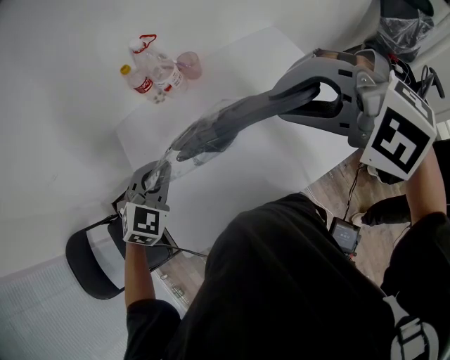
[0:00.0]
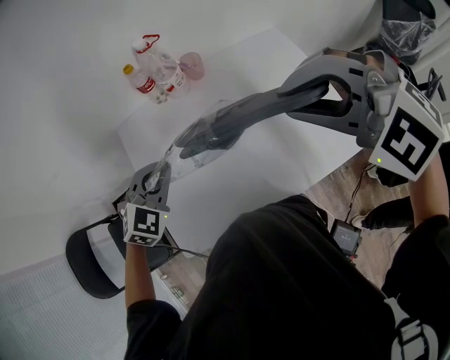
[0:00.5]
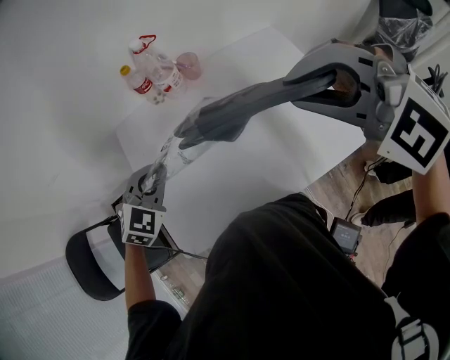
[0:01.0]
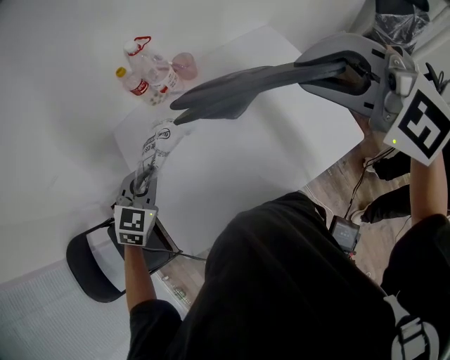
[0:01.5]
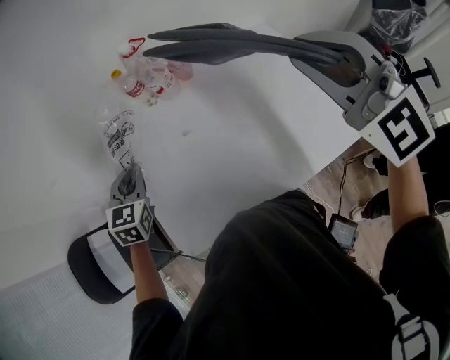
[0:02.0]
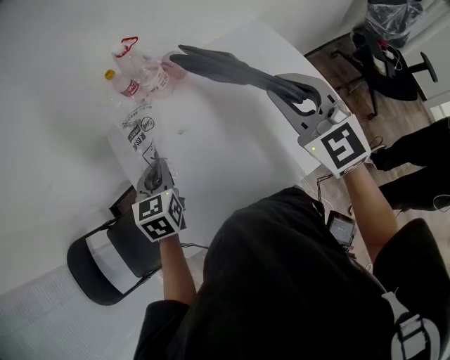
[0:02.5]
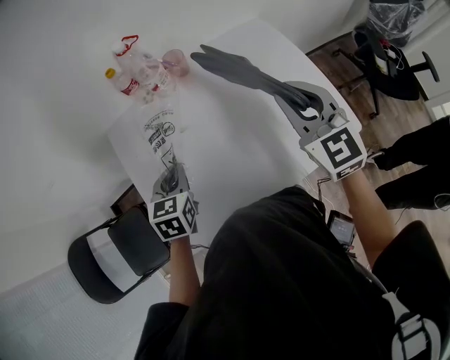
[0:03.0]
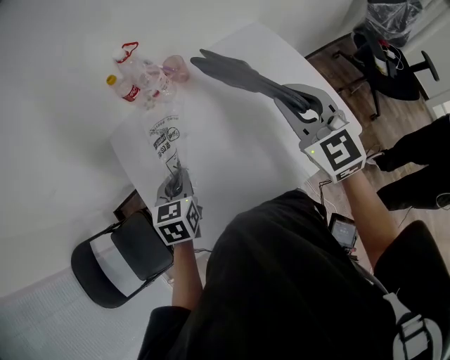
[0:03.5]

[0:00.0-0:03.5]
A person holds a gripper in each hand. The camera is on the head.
0:00.0 to 0:02.0: The right gripper goes roughly 10 cm to the right, and rotates some 40 degrees. Meanwhile the left gripper travels to the left and forward by some 10 cm, and changes its angle by roughly 40 degrees.
0:02.0 to 0:03.5: The left gripper travels to the right, downward and backward by about 15 cm. The right gripper is displaced downward by approximately 15 cm, and turns by approximately 30 degrees.

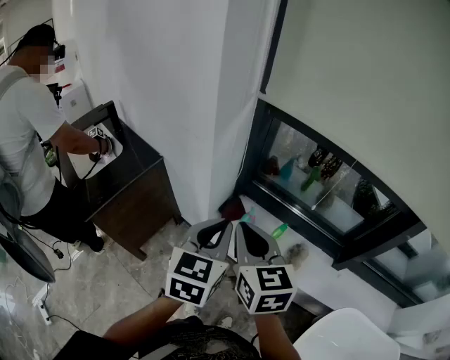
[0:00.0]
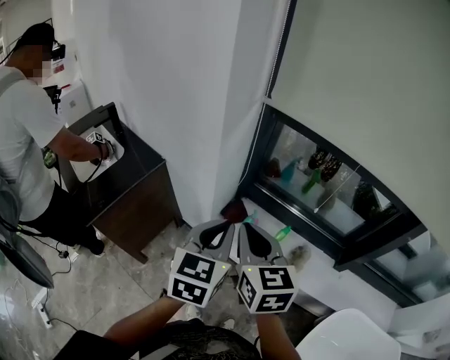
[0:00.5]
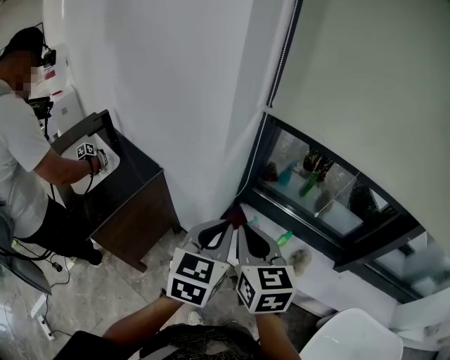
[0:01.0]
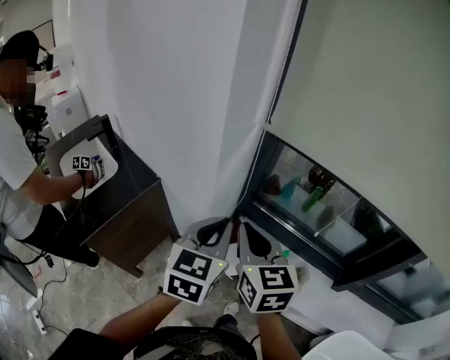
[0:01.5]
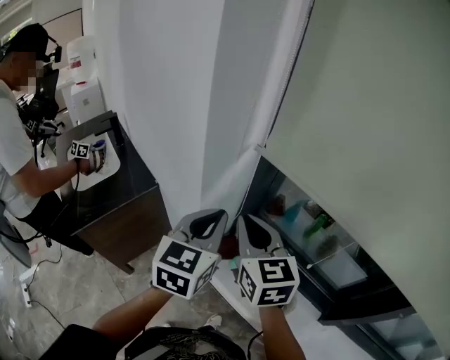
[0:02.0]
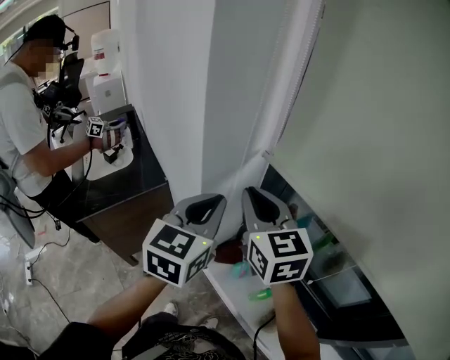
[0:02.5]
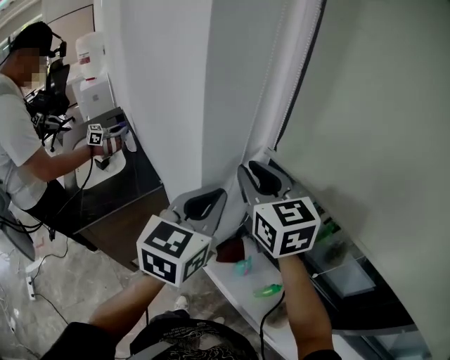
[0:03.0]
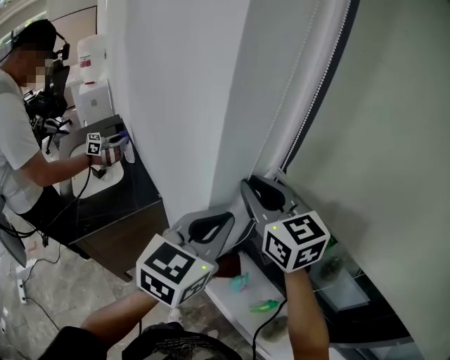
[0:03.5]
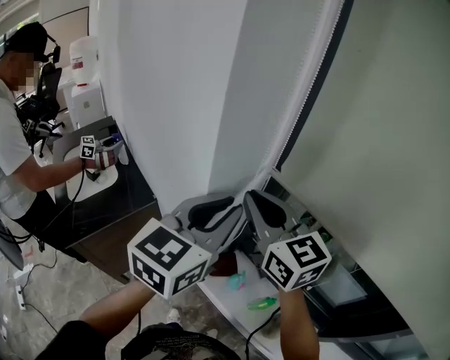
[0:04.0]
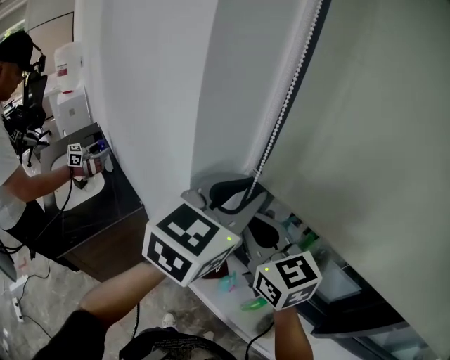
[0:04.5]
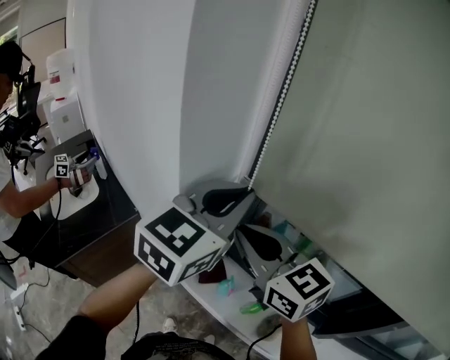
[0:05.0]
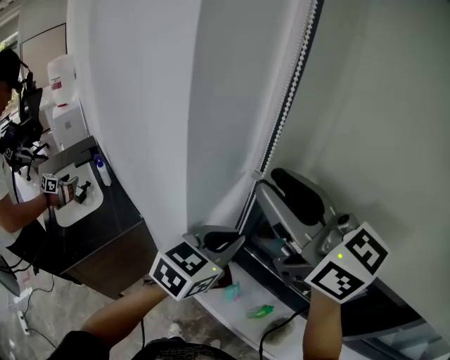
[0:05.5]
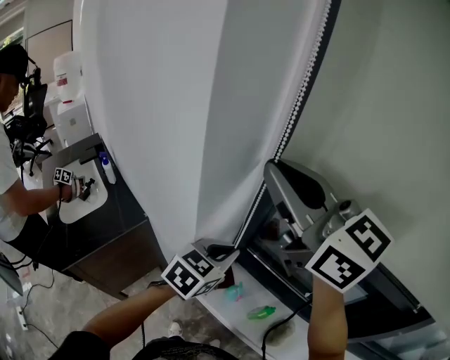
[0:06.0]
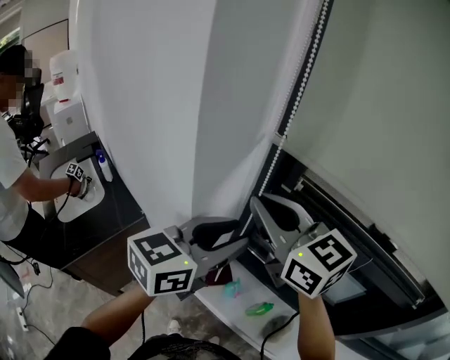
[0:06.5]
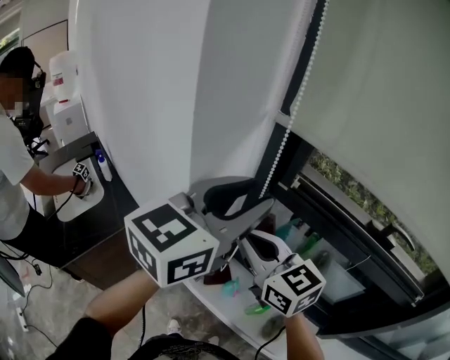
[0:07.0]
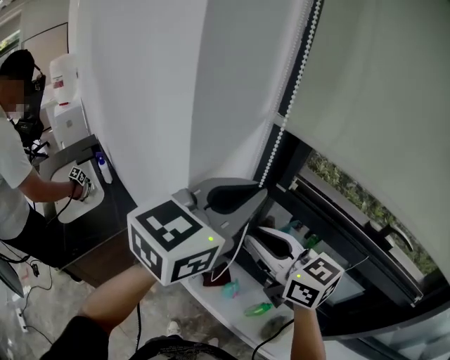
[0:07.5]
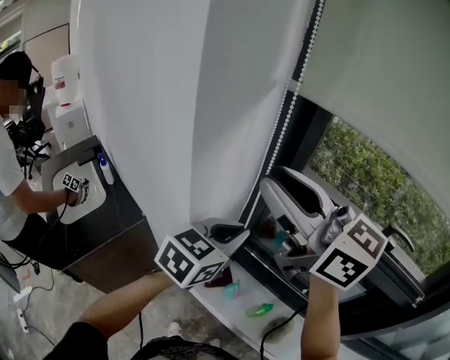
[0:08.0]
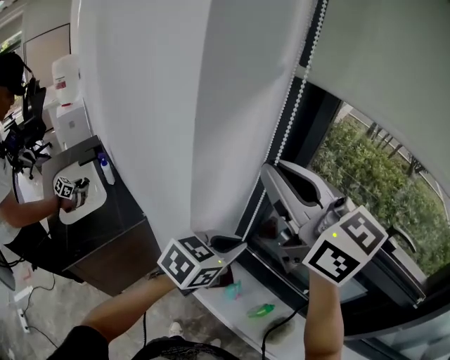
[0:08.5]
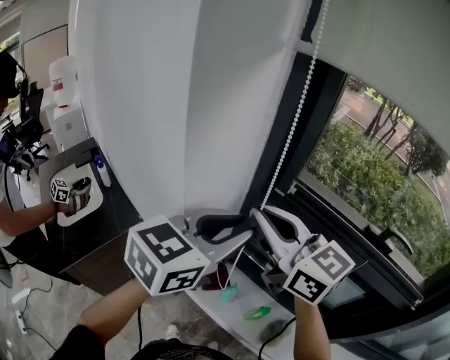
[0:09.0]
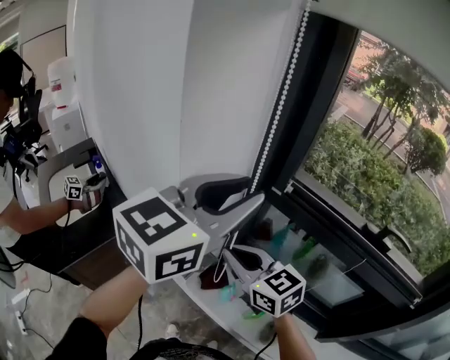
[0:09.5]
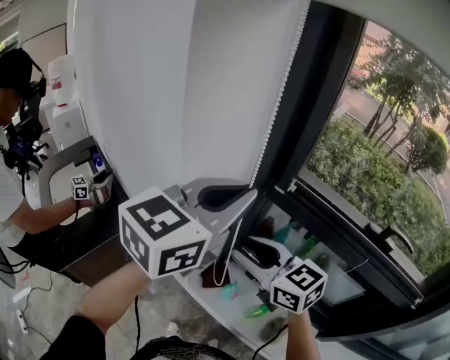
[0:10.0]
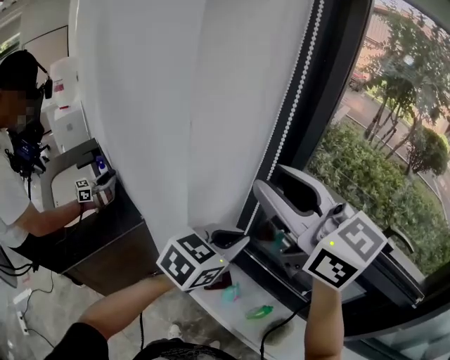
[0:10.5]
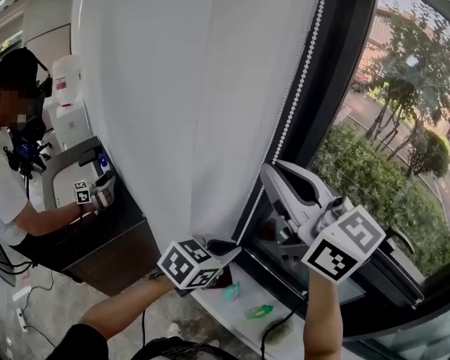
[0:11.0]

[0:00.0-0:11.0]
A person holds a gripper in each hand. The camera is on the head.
0:00.0 to 0:02.0: Both grippers travel together forward, some 20 cm.
0:02.0 to 0:03.5: The left gripper shifts by approximately 5 cm; the right gripper shifts approximately 15 cm forward and upward, and rotates about 20 degrees.
0:03.5 to 0:05.5: The left gripper moves to the right, about 10 cm, travels upward and back again, roughly 10 cm each way, and rotates about 20 degrees. Meanwhile the right gripper is displaced upward by approximately 15 cm.
0:05.5 to 0:07.5: The right gripper moves downward, approximately 15 cm. The left gripper is displaced upward by some 15 cm, and opens, then closes once more.
0:07.5 to 0:09.0: The left gripper shifts roughly 5 cm downward, and opens up. Meanwhile the right gripper moves upward, about 5 cm.
0:09.0 to 0:11.0: The right gripper moves upward, approximately 10 cm, and opens, then closes again. Meanwhile the left gripper heads downward, covering roughly 15 cm, and closes.

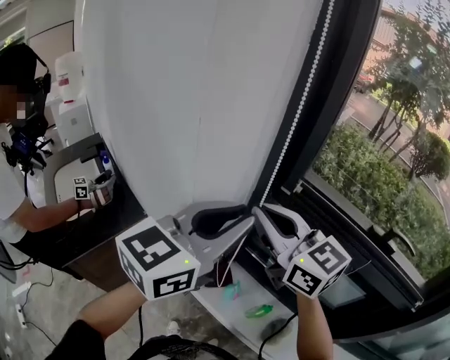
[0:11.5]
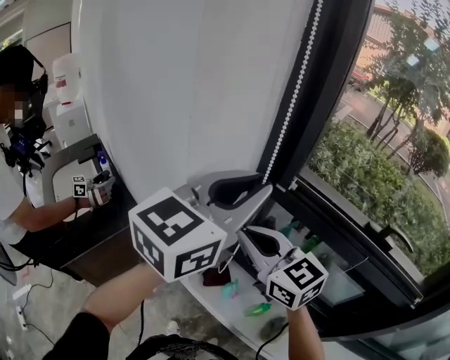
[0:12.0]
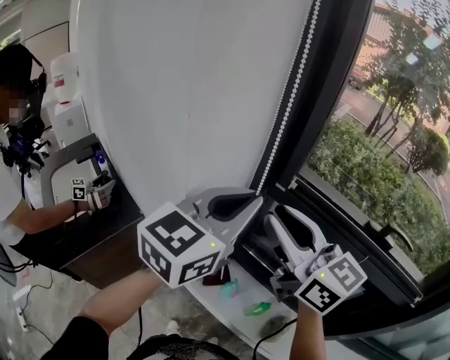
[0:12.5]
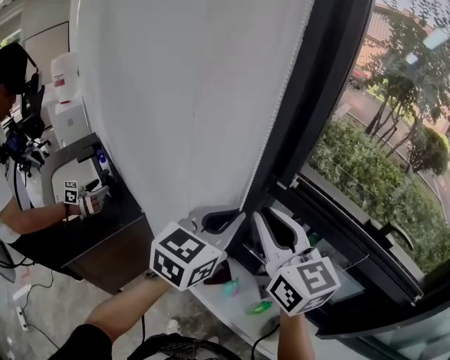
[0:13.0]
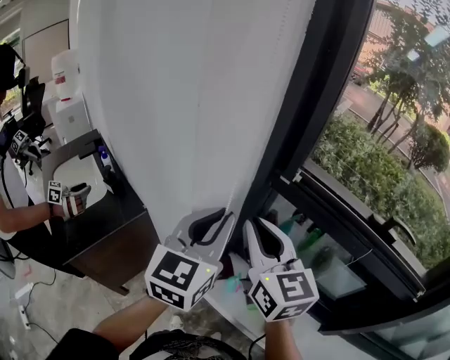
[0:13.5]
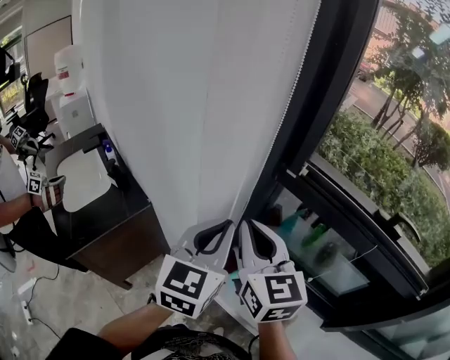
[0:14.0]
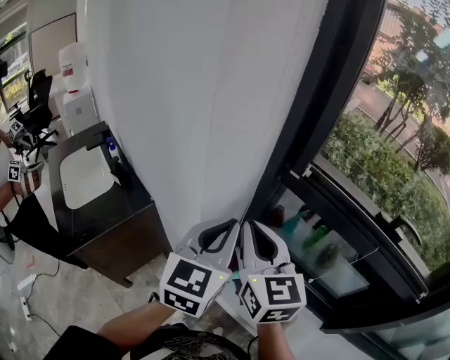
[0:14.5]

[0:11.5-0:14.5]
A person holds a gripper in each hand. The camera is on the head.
0:11.5 to 0:13.0: The right gripper reaches some 5 cm downward, then returns; the left gripper goes roughly 10 cm downward.
0:13.0 to 0:14.5: The right gripper travels downward by approximately 5 cm; the left gripper moves approximately 5 cm.

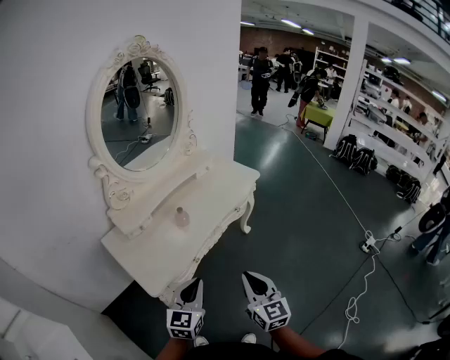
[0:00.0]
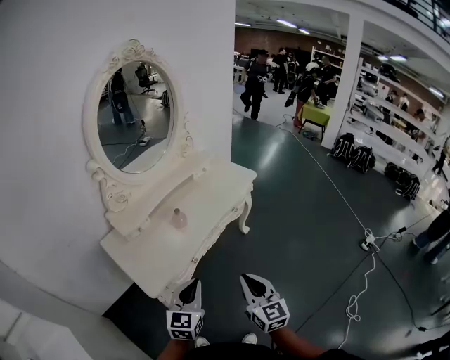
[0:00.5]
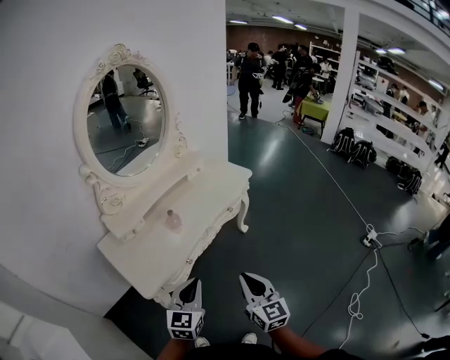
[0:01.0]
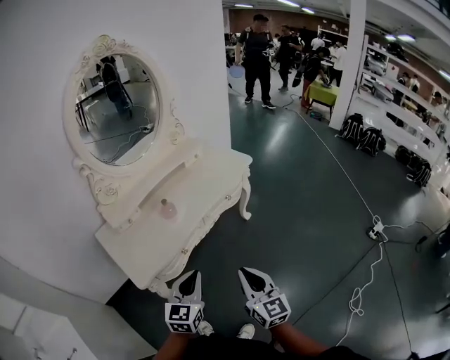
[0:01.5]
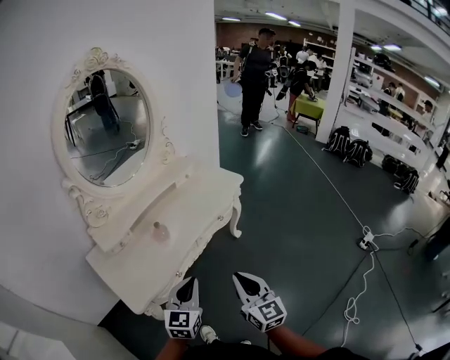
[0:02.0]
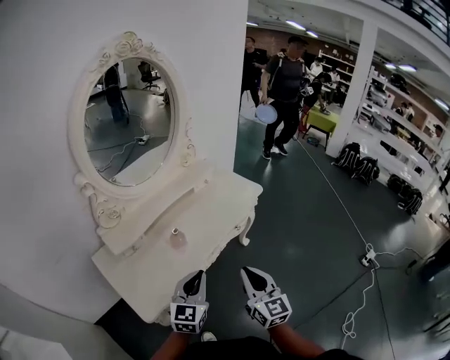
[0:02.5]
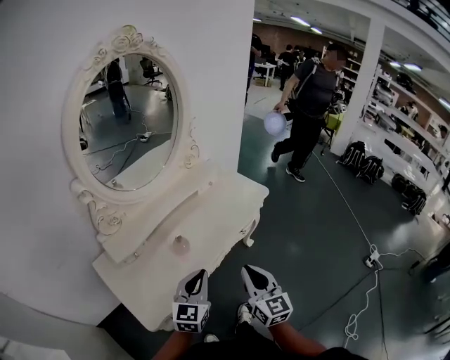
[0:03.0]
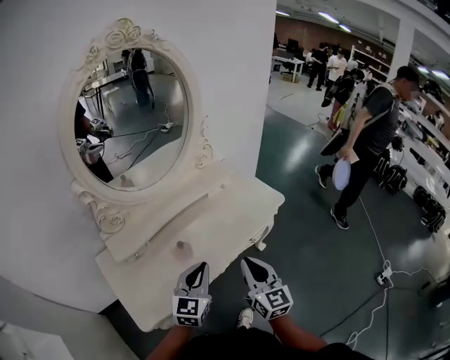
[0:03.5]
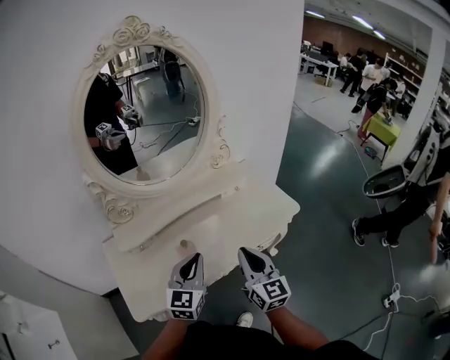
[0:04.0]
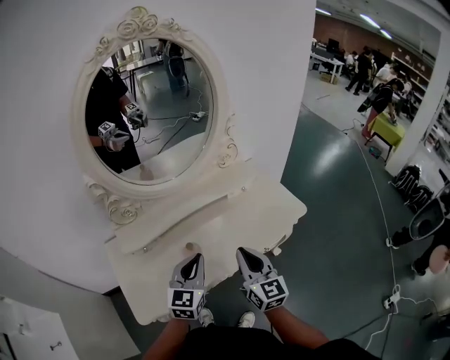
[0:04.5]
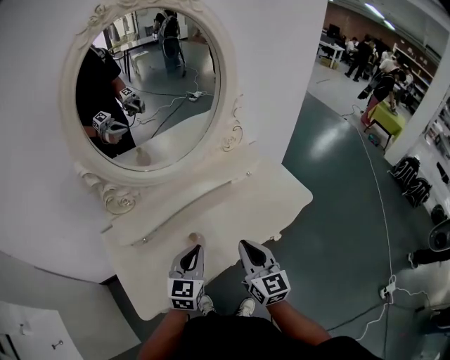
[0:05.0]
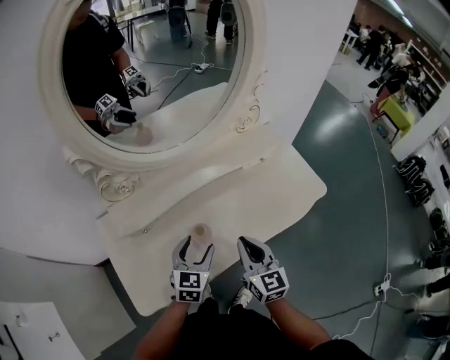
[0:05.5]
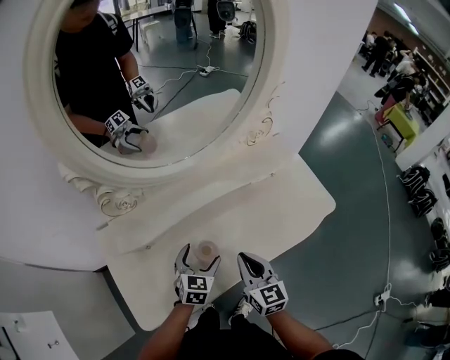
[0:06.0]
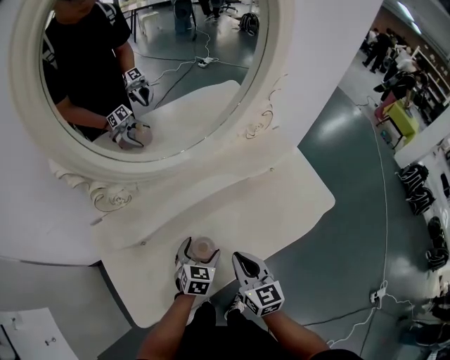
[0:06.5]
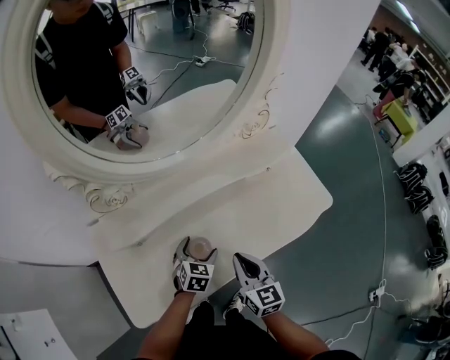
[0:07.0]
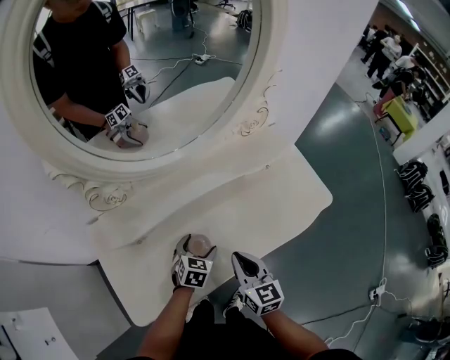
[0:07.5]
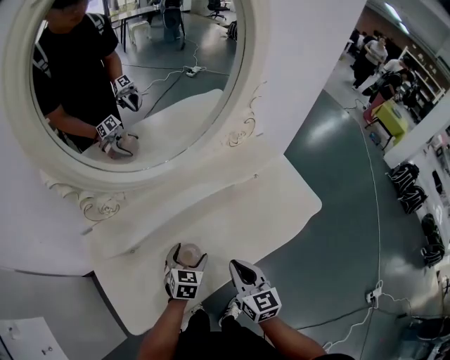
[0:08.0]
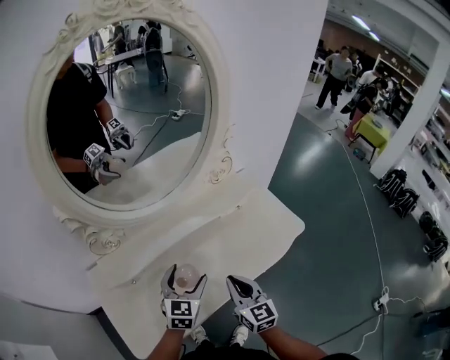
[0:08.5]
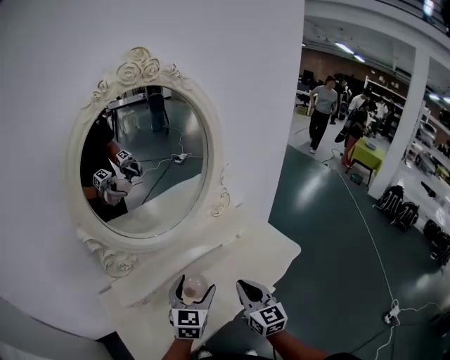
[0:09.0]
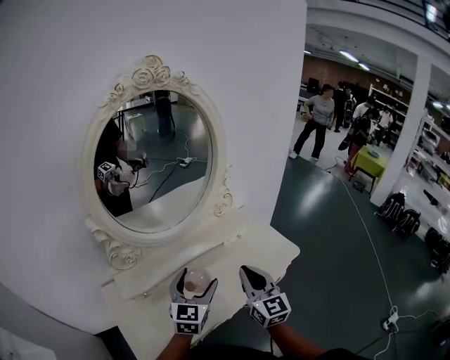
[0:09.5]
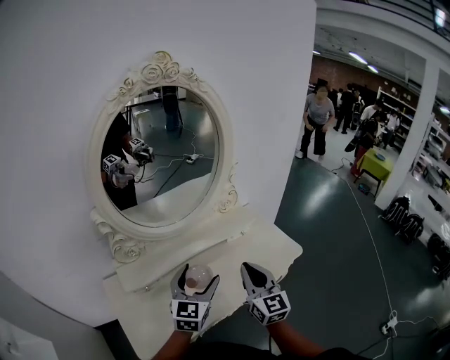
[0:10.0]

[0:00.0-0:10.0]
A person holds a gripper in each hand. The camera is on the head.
0:00.0 to 0:02.0: Both grippers travel together to the right and forward, roughly 10 cm.
0:02.0 to 0:04.0: The two grippers go approximately 25 cm forward.
0:04.0 to 0:06.0: The right gripper moves downward, to the left and forward, roughly 20 cm. Meanwhile the left gripper moves downward and forward, about 25 cm, rotates approximately 30 degrees, and opens up.
0:06.0 to 0:08.0: The grippers move only a little.
0:08.0 to 0:10.0: Both grippers move upward, some 25 cm. The right gripper rotates roughly 20 degrees; the left gripper tilts its fingers some 30 degrees upward.
